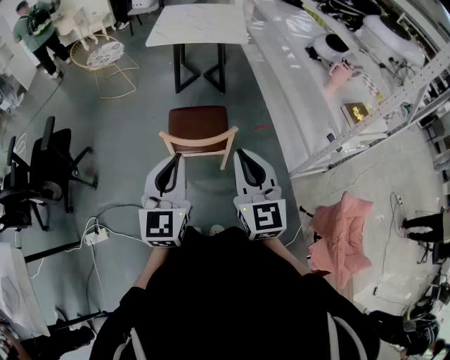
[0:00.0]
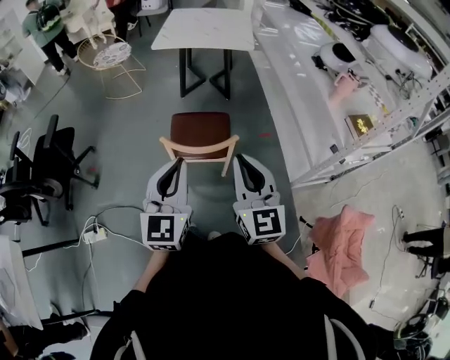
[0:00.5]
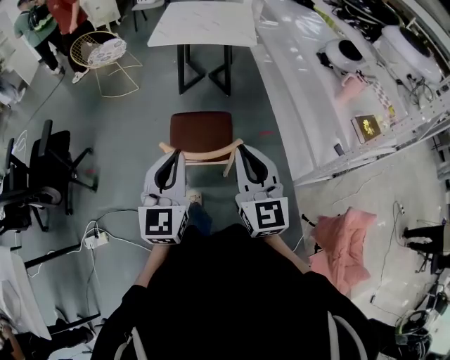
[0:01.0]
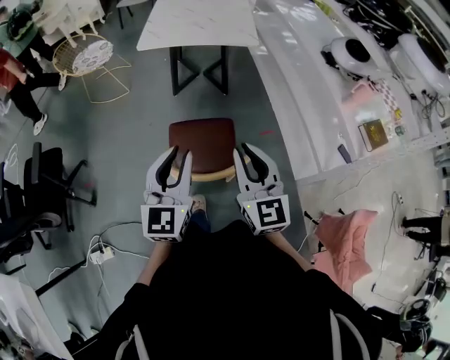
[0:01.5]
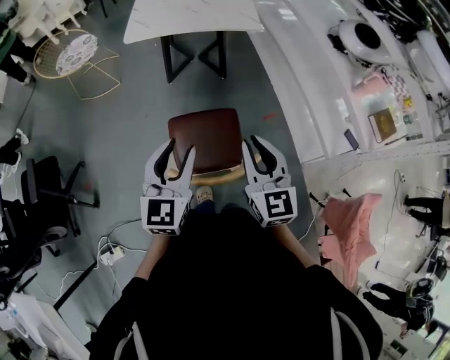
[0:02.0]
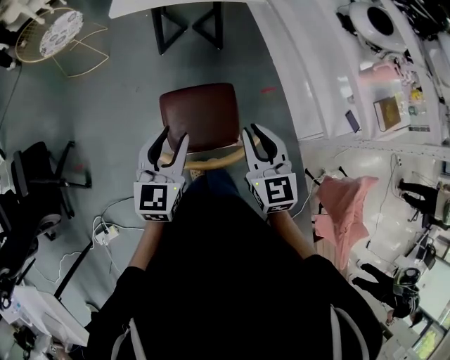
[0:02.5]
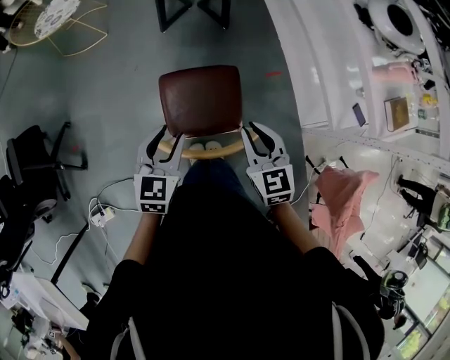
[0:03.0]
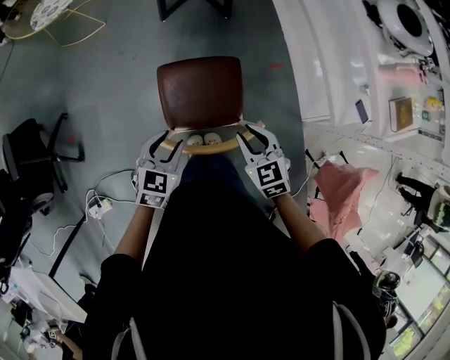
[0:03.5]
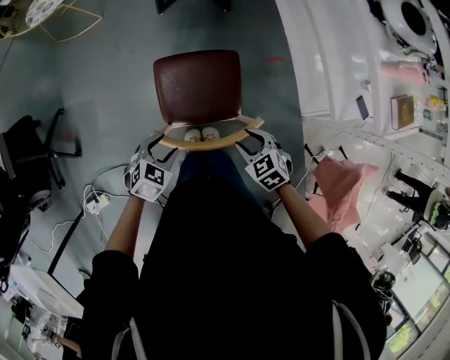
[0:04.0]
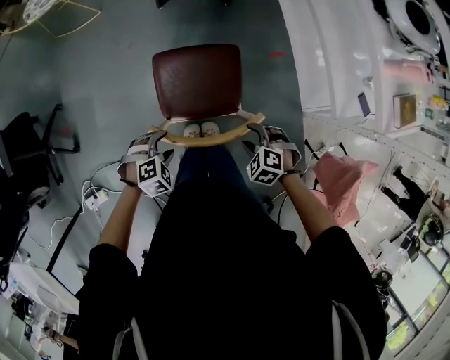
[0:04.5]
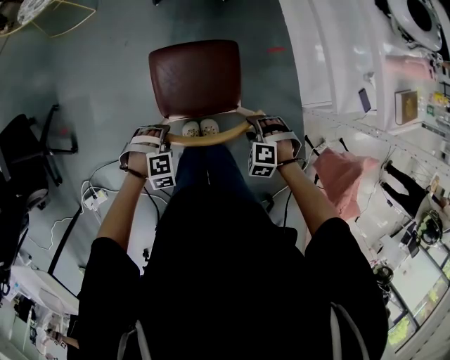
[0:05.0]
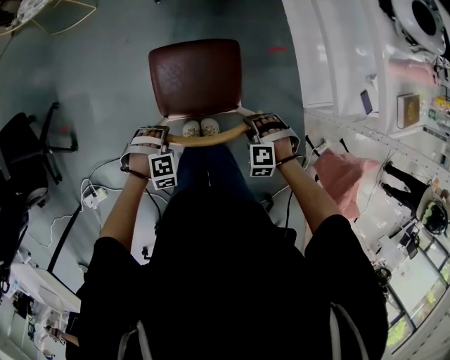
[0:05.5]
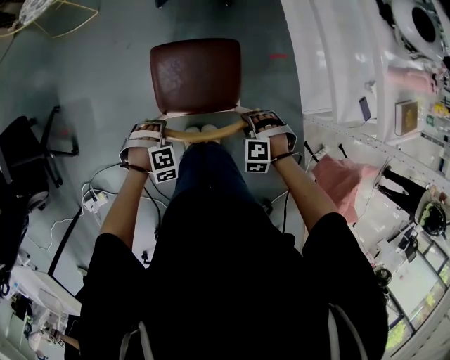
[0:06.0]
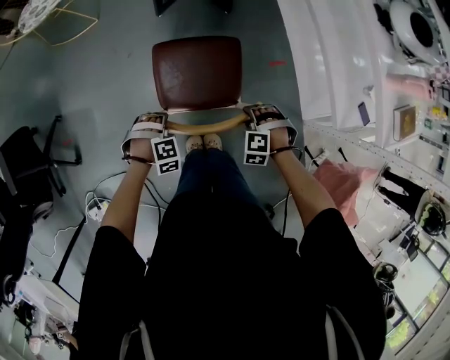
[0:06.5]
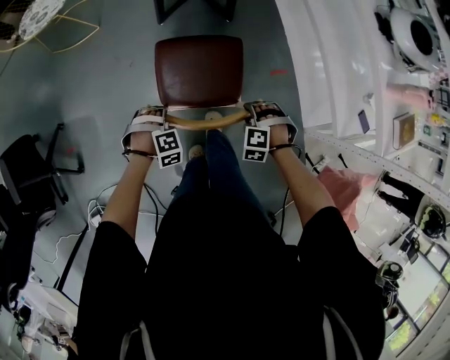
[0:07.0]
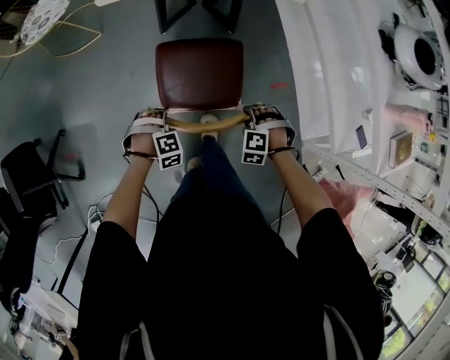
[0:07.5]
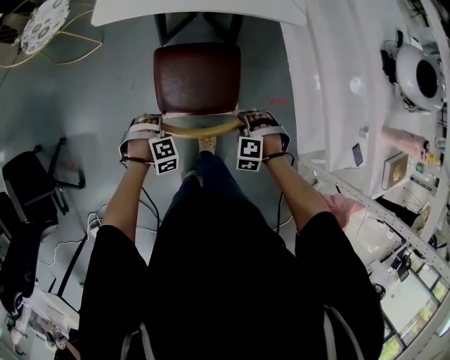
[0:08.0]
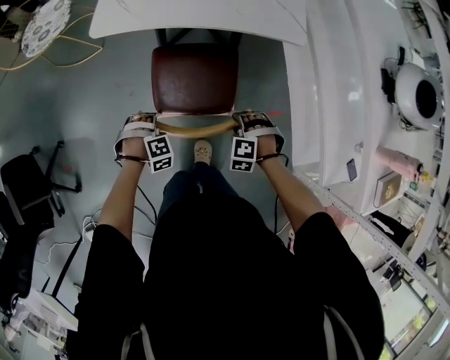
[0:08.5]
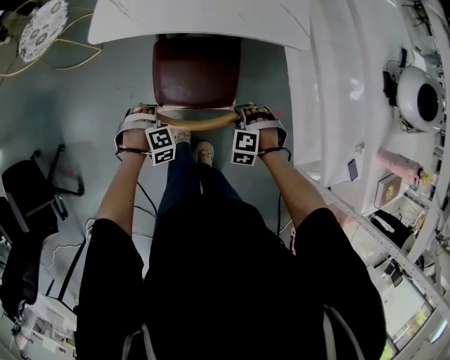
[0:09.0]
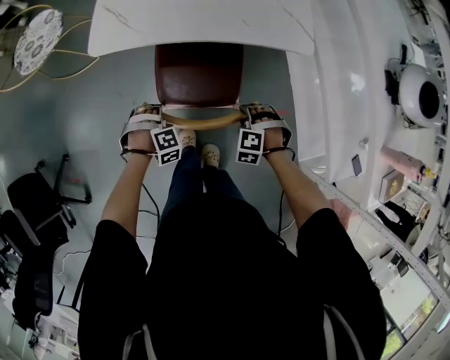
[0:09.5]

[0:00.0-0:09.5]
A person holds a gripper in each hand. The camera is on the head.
0:00.0 to 0:02.0: Both grippers move forward, some 30 cm. The left gripper opens.
0:02.0 to 0:04.0: The grippers both shift downward by approximately 30 cm. The right gripper tips its fingers downward by approximately 50 degrees, and opens up. Meanwhile the left gripper points its fingers approximately 50 degrees further downward.
0:04.0 to 0:05.5: The two grippers go roughly 10 cm downward. The right gripper rotates around the line of its fingers by some 50 degrees, counterclockwise from behind. The left gripper twists approximately 50 degrees clockwise, seen from behind.
0:05.5 to 0:07.5: The left gripper ends up about 25 cm from where it was. The right gripper shifts by about 25 cm.
0:07.5 to 0:09.5: The right gripper changes place by approximately 20 cm. The left gripper ends up some 25 cm from where it was.

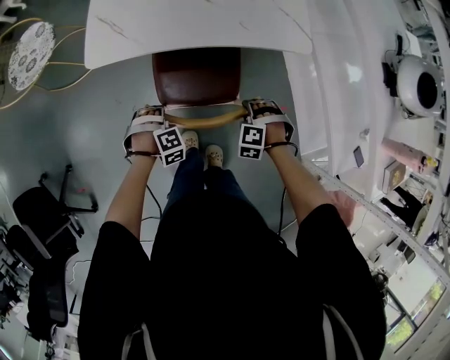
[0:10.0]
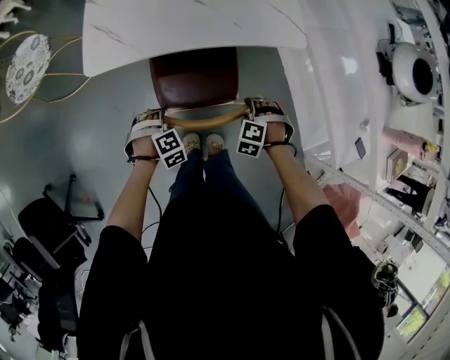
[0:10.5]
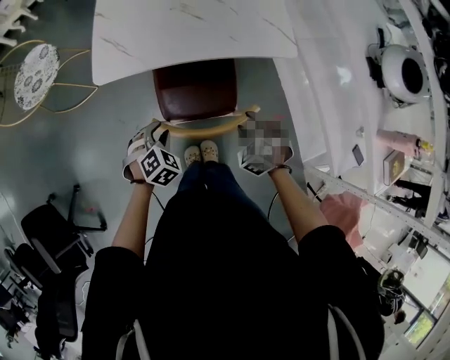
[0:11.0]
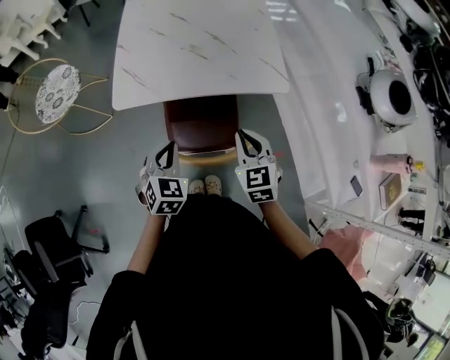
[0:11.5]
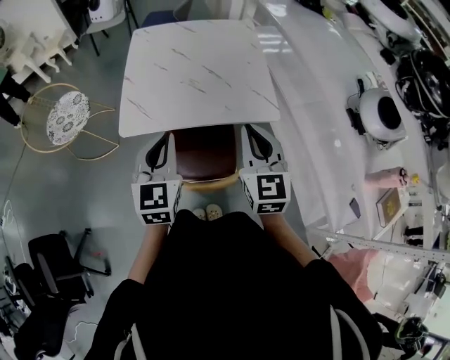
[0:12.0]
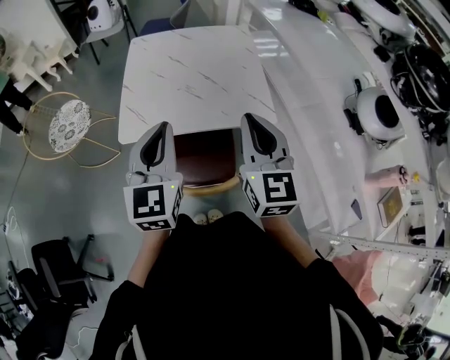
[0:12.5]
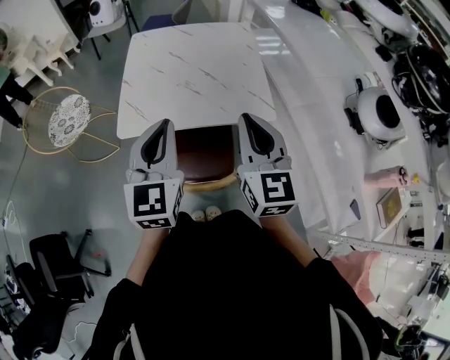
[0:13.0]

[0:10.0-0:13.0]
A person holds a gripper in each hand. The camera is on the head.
0:10.0 to 0:11.5: Both grippers travel together upward, approximately 25 cm. The right gripper points its fingers some 40 degrees further upward, and closes. Meanwhile the left gripper points its fingers about 40 degrees further upward, and closes up.
0:11.5 to 0:13.0: Both grippers move upward, approximately 25 cm. The right gripper changes its angle by some 30 degrees, while the left gripper tilts its fingers some 30 degrees upward.

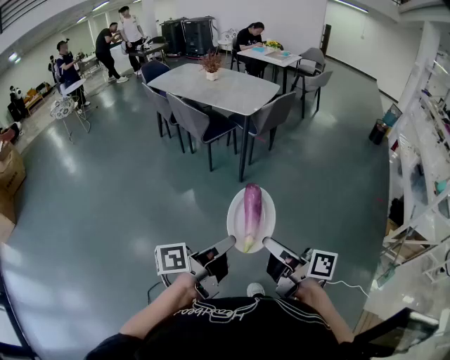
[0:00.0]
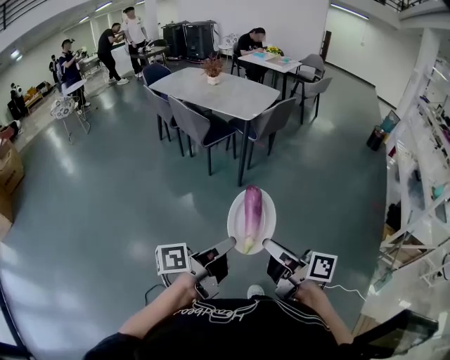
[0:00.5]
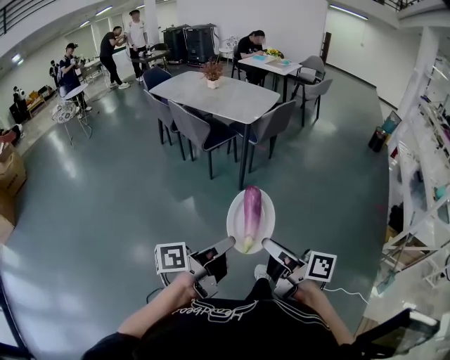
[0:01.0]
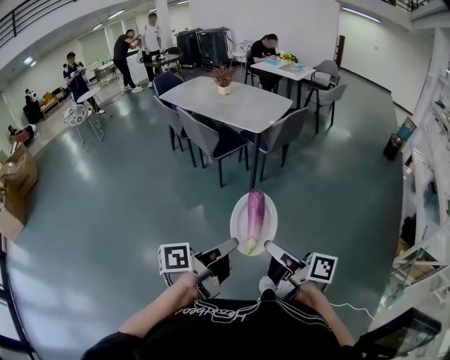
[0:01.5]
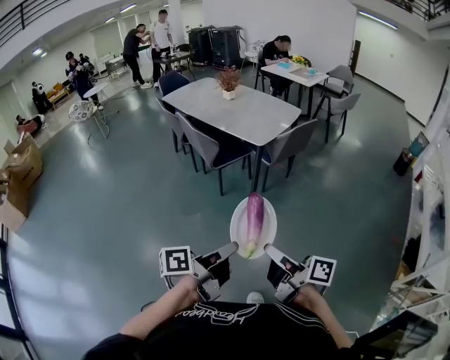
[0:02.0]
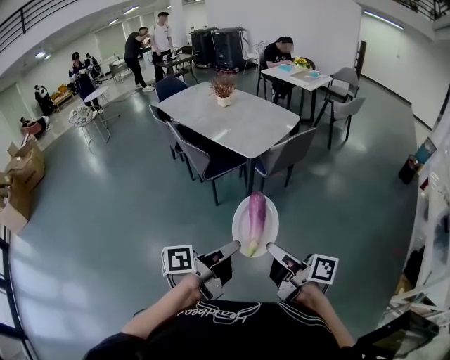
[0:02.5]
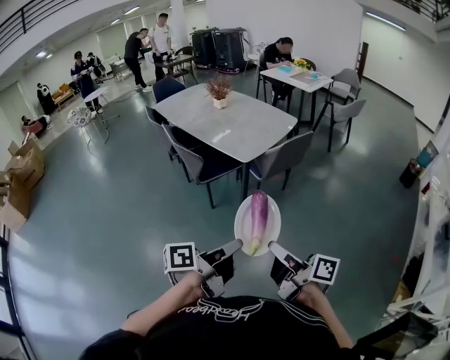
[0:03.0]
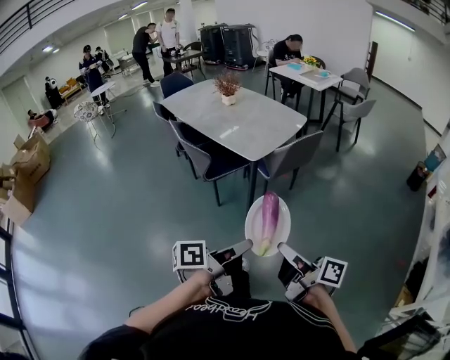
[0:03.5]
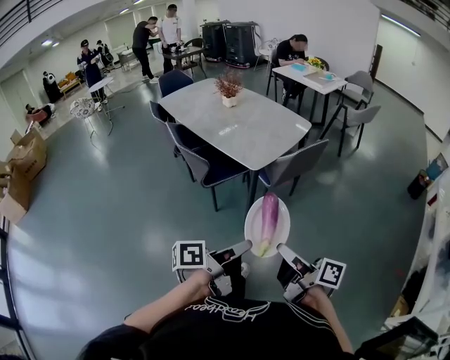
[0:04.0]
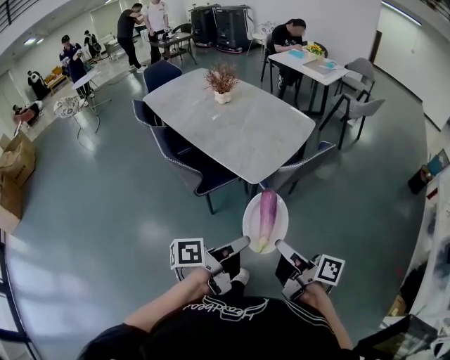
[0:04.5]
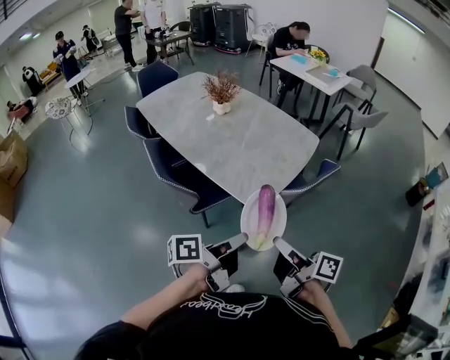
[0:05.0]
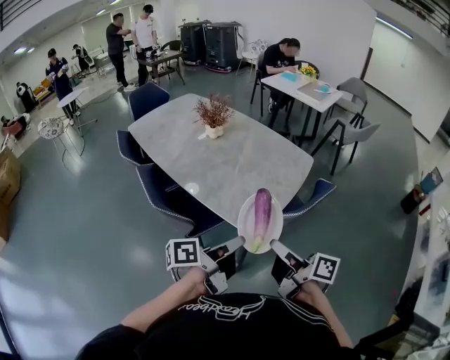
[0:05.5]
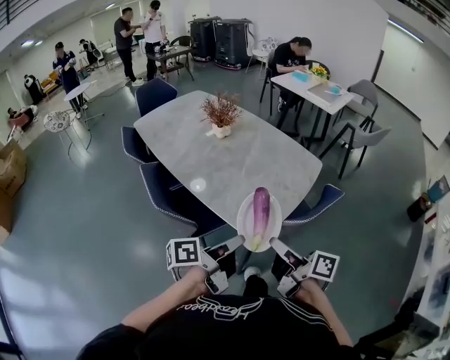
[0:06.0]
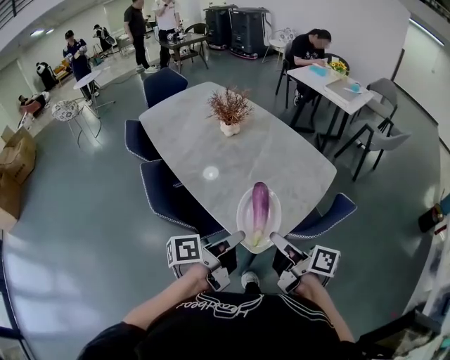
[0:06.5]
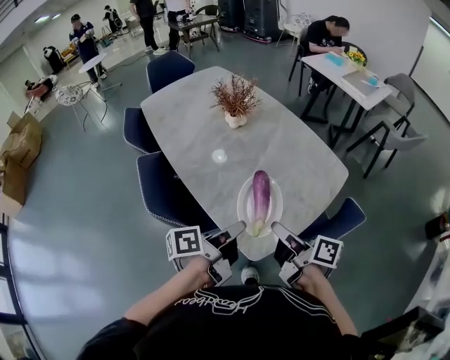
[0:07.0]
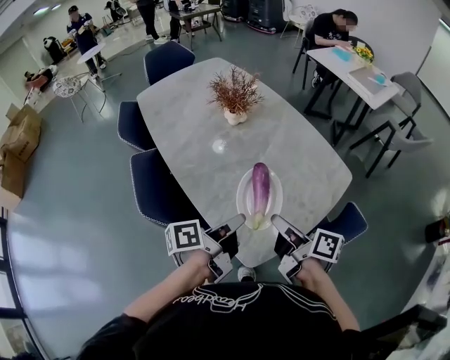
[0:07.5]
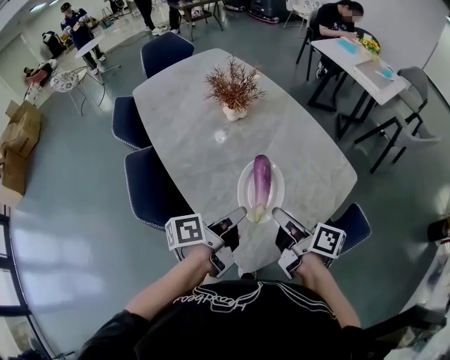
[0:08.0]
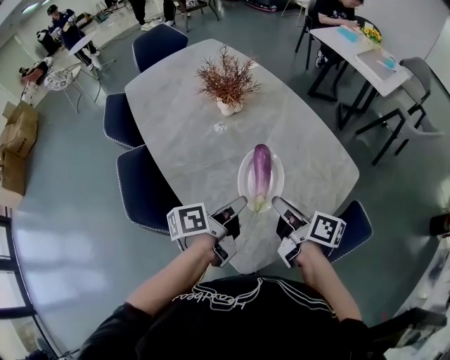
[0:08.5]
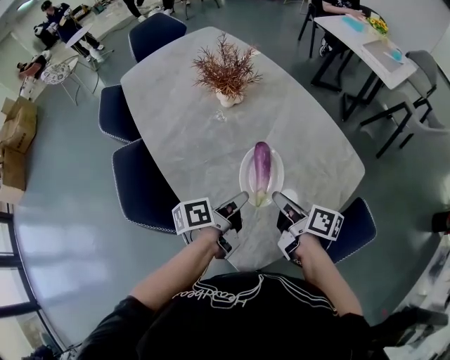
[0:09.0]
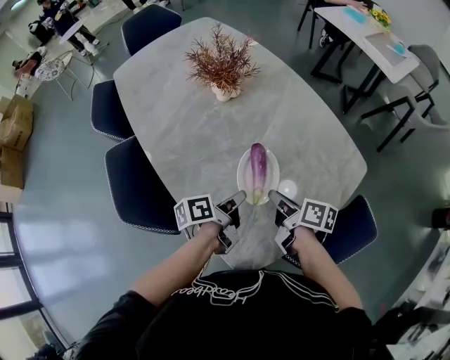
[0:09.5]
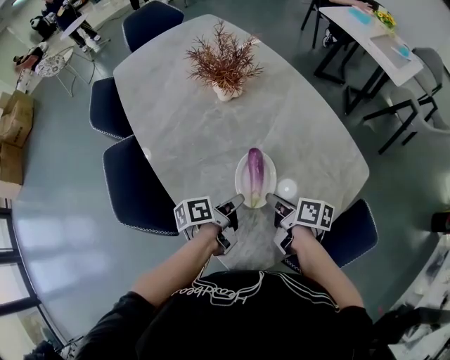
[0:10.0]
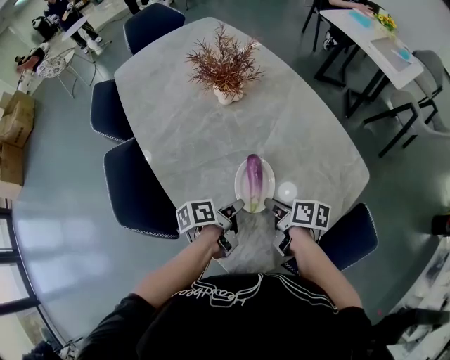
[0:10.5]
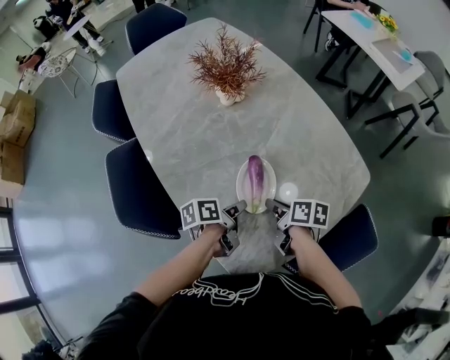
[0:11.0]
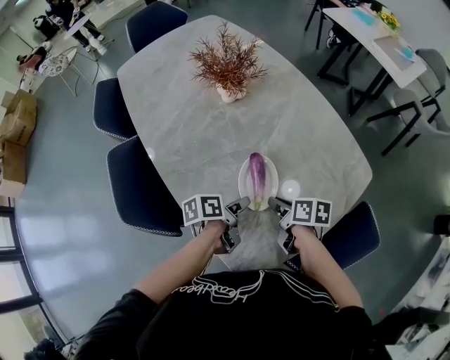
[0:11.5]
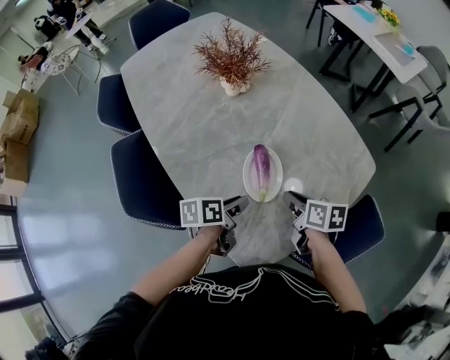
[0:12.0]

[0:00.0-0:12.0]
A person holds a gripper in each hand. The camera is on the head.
0:00.0 to 0:02.0: Both grippers move forward, some 20 cm.
0:02.0 to 0:04.0: The grippers both shift forward and to the right by some 30 cm.
0:04.0 to 0:06.0: Both grippers are carried forward, approximately 40 cm.
0:06.0 to 0:08.0: Both grippers move forward, about 30 cm.
0:08.0 to 0:10.0: The grippers both shift downward and forward by approximately 20 cm. The right gripper rotates some 20 degrees.
0:10.0 to 0:12.0: The left gripper rotates approximately 20 degrees. Meanwhile the right gripper swivels roughly 20 degrees.

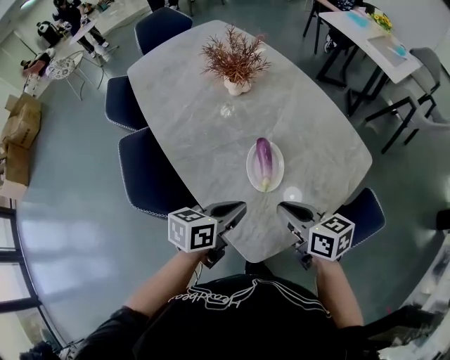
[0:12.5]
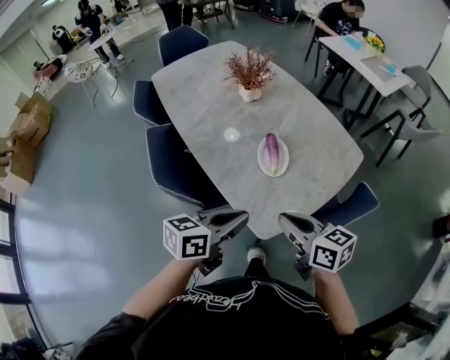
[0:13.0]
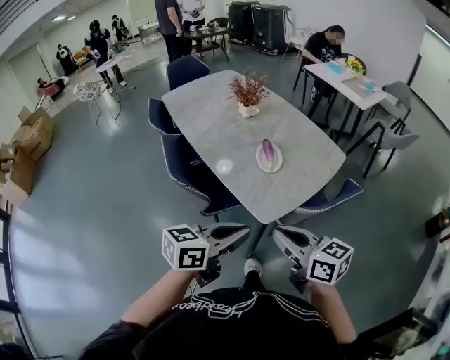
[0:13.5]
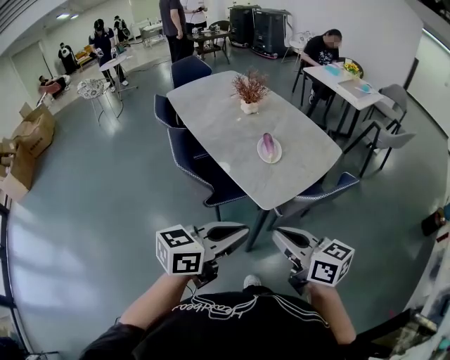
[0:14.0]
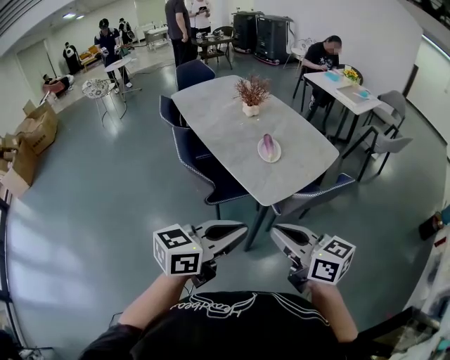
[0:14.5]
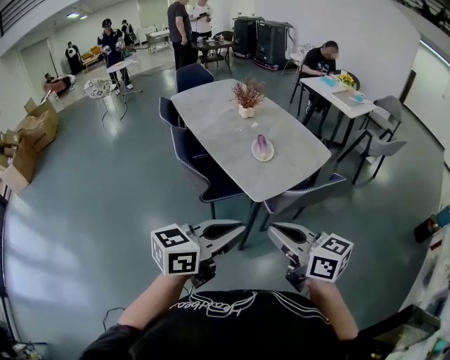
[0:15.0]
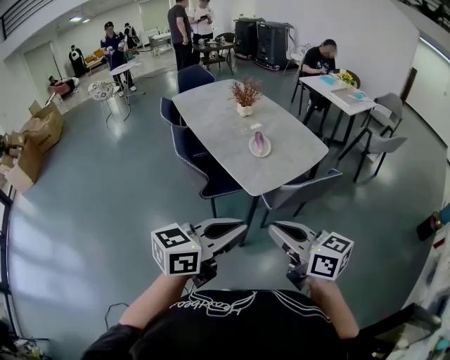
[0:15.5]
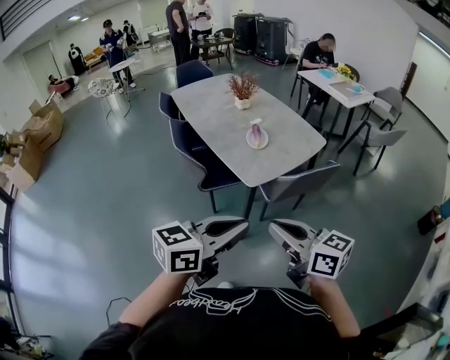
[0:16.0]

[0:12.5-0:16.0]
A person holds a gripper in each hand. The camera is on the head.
0:12.5 to 0:14.5: The pair of grippers is taken backward, some 40 cm. The grippers both shift upward by approximately 20 cm. The right gripper swivels roughly 20 degrees, while the left gripper changes its angle by roughly 30 degrees.
0:14.5 to 0:16.0: Both grippers travel together backward and to the right, some 15 cm.
